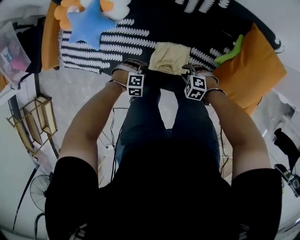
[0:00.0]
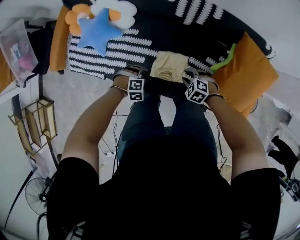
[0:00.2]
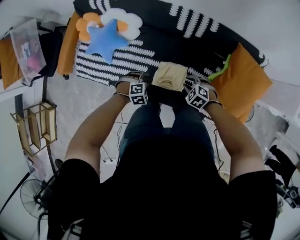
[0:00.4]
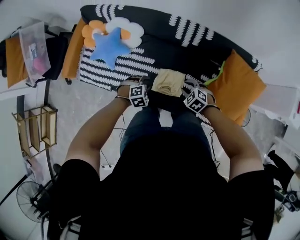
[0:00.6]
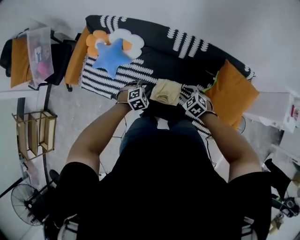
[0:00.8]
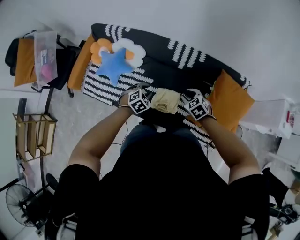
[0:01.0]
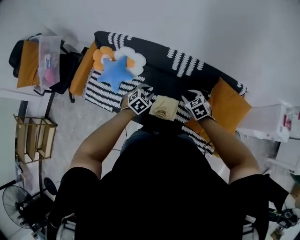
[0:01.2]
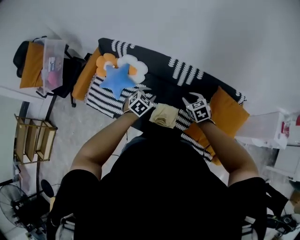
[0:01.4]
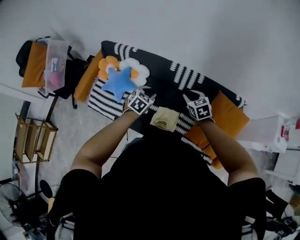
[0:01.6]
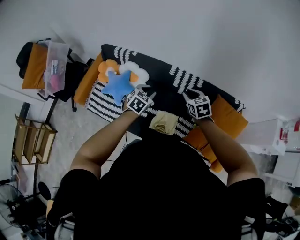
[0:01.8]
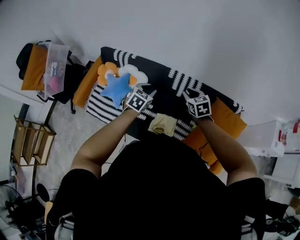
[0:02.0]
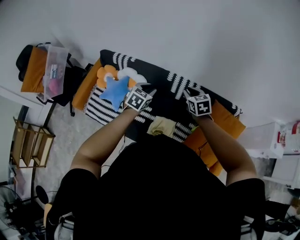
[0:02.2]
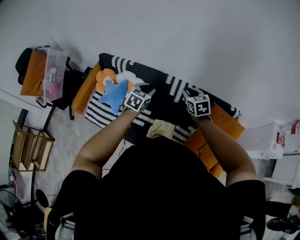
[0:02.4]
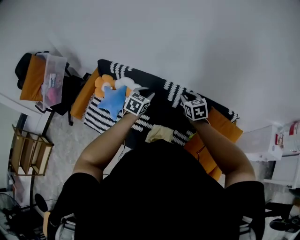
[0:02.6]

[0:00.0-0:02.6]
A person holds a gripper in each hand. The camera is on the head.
0:00.0 to 0:01.2: Both grippers travel together upward, some 35 cm. The left gripper rotates around the line of its fingers by approximately 50 degrees, counterclockwise from behind. Meanwhile the right gripper turns by some 40 degrees.
0:01.2 to 0:02.6: The grippers both shift upward and forward by about 20 cm. The left gripper swivels approximately 30 degrees.

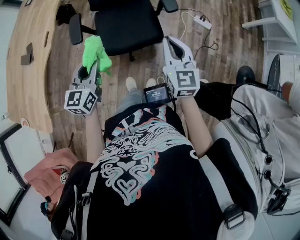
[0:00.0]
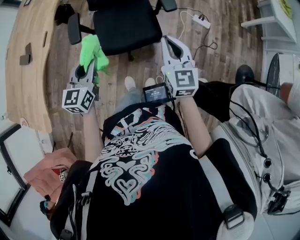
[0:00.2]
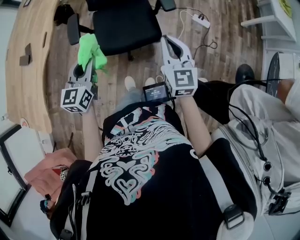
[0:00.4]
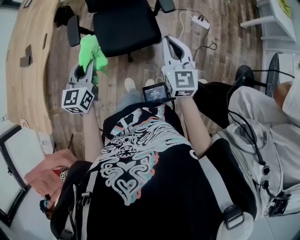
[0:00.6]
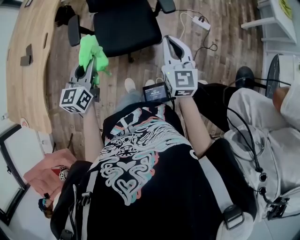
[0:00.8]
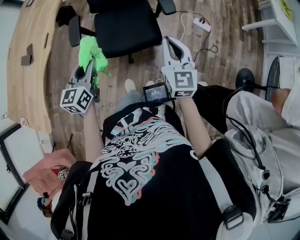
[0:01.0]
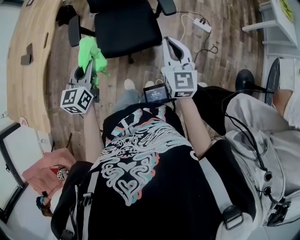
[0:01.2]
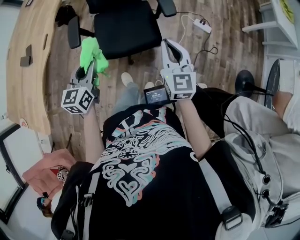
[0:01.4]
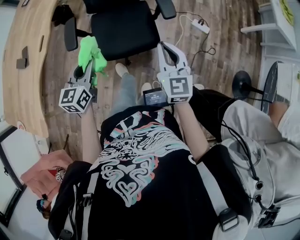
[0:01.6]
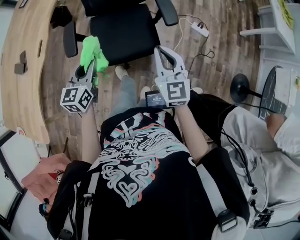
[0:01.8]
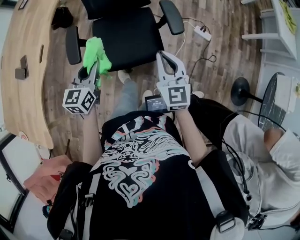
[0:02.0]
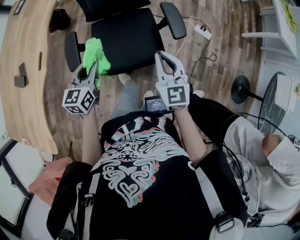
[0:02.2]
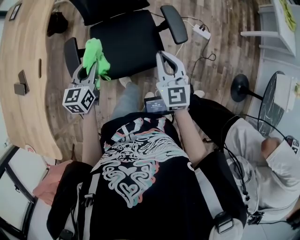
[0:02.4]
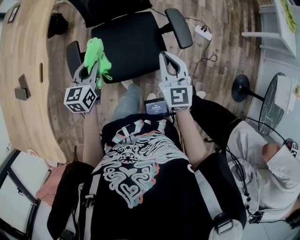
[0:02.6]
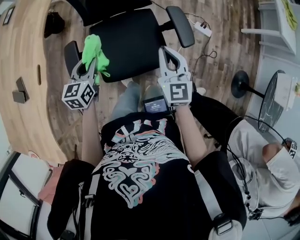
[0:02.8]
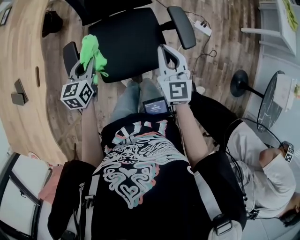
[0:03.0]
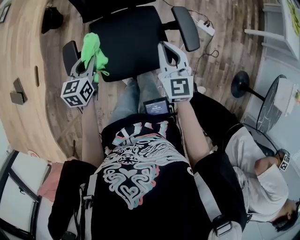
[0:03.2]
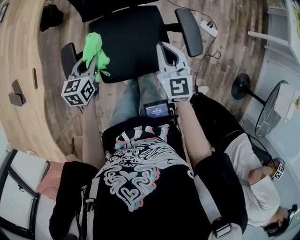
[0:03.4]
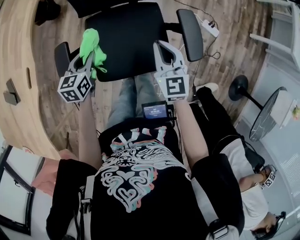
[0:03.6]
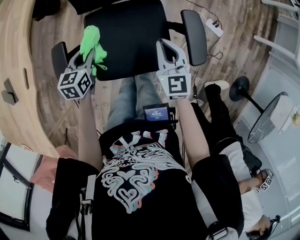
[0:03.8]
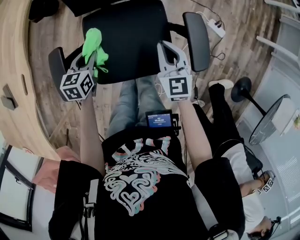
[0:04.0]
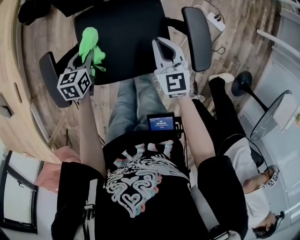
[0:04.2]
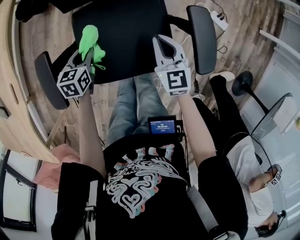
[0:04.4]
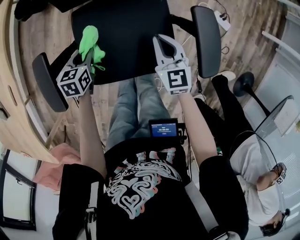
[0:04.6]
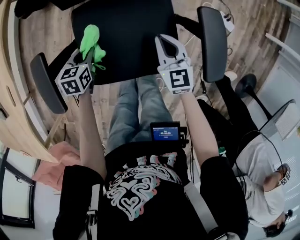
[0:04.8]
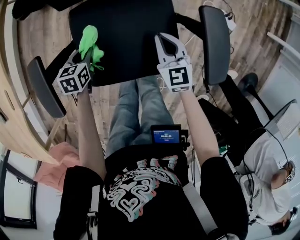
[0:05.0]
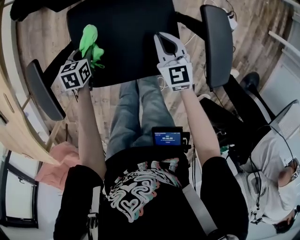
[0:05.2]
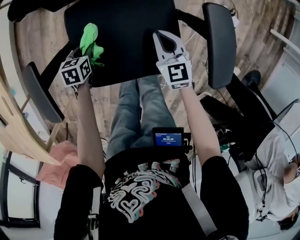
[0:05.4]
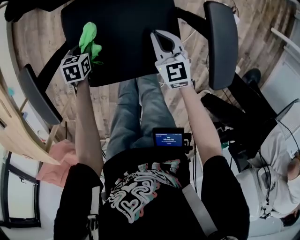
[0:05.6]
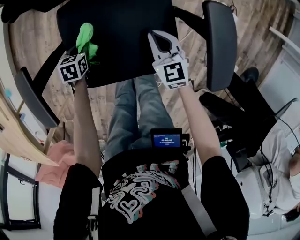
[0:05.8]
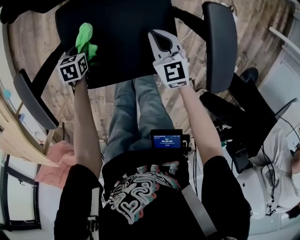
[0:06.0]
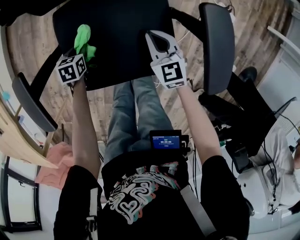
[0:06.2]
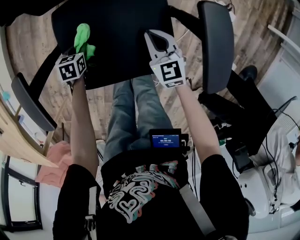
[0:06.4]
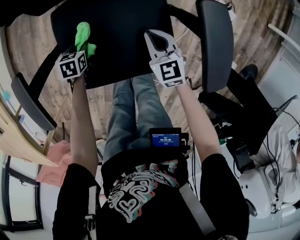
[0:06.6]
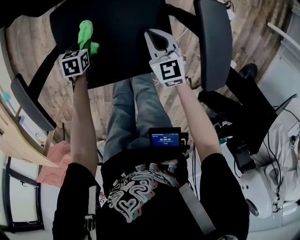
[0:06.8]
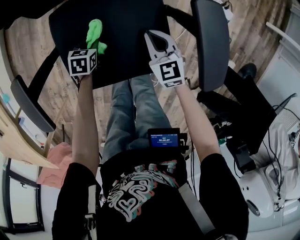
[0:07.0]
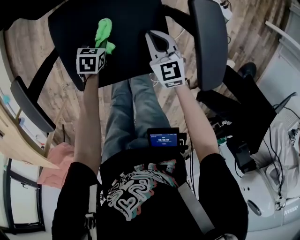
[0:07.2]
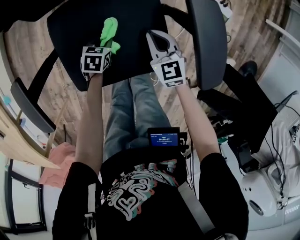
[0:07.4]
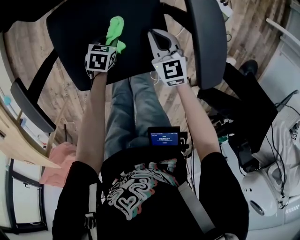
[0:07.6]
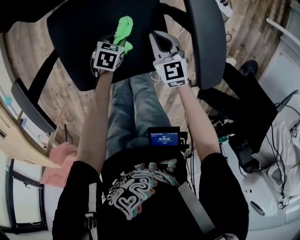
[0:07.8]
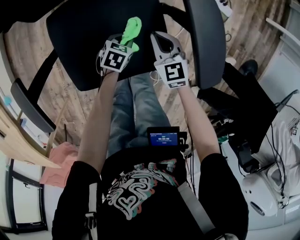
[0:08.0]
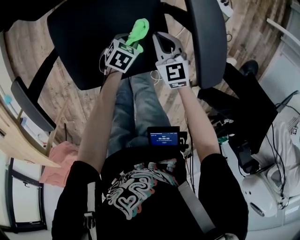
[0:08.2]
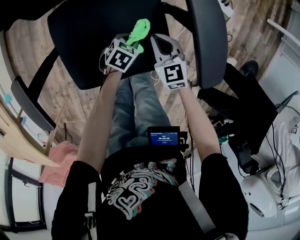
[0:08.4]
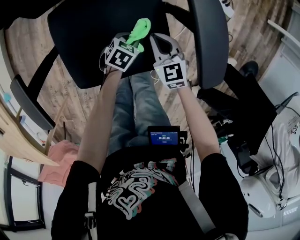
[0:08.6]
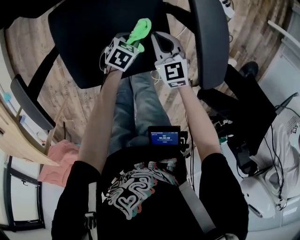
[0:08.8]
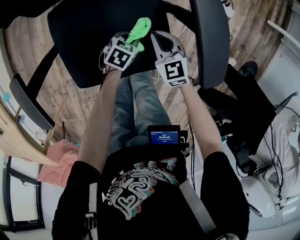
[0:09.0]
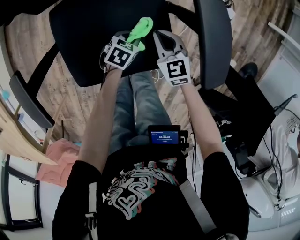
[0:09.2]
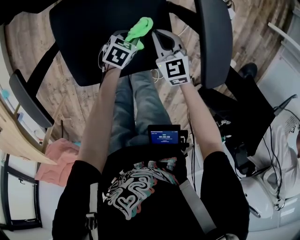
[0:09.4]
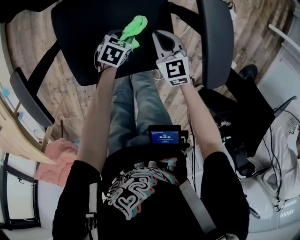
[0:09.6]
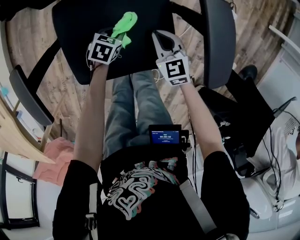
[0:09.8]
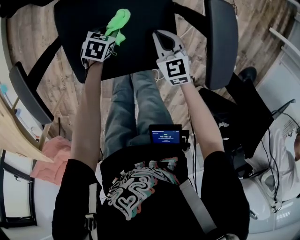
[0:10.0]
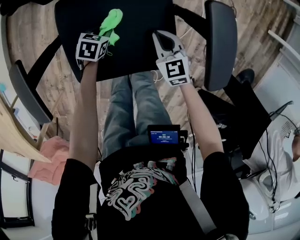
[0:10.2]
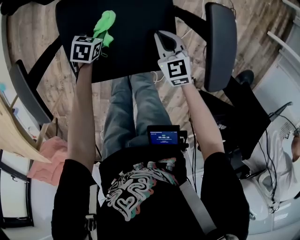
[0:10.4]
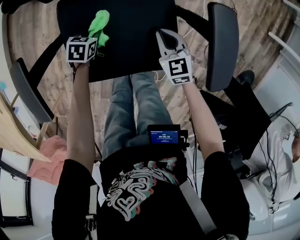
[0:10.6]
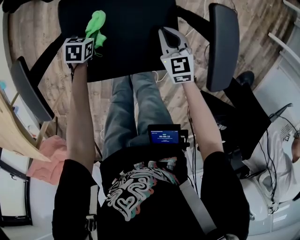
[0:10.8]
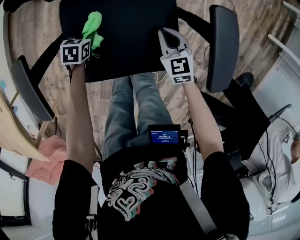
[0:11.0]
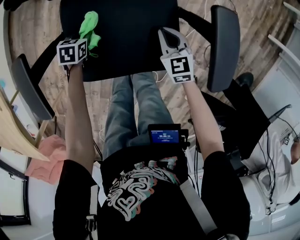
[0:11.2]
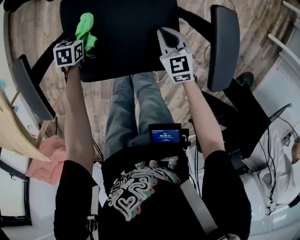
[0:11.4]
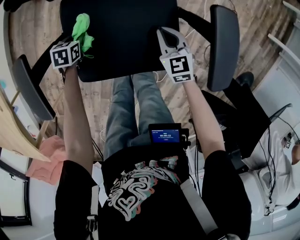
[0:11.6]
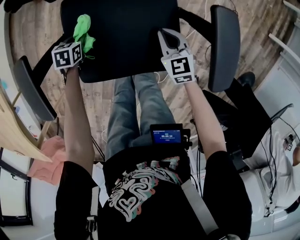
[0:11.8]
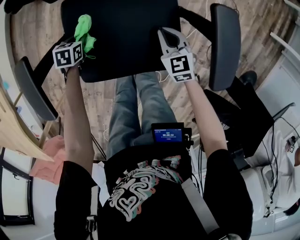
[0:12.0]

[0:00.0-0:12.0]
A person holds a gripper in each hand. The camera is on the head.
0:00.0 to 0:01.6: The left gripper shifts some 5 cm forward.
0:01.6 to 0:03.0: The right gripper travels forward and to the left by about 20 cm, while the left gripper is displaced forward, downward and to the left by some 30 cm.
0:03.0 to 0:04.4: The left gripper moves downward, roughly 20 cm, and rotates about 20 degrees. The right gripper moves downward and forward, some 25 cm.
0:04.4 to 0:06.0: Both grippers move downward, roughly 15 cm.
0:06.0 to 0:07.6: The left gripper moves to the right, about 15 cm, and rotates some 20 degrees.
0:07.6 to 0:09.0: The left gripper travels to the right by about 10 cm.
0:09.0 to 0:10.4: The left gripper travels to the left by approximately 15 cm.
0:10.4 to 0:12.0: The left gripper heads to the left, covering some 10 cm.

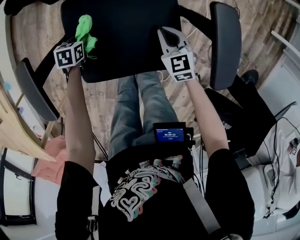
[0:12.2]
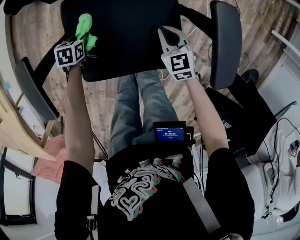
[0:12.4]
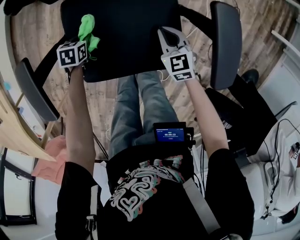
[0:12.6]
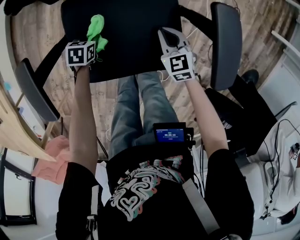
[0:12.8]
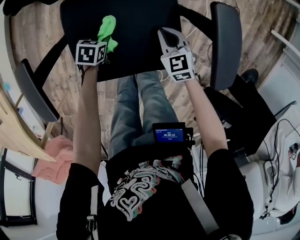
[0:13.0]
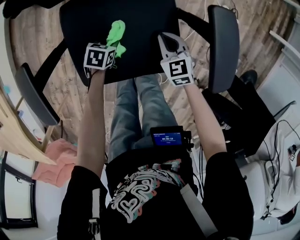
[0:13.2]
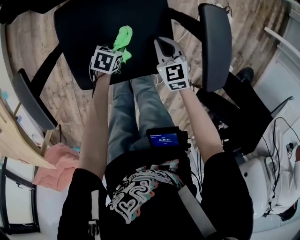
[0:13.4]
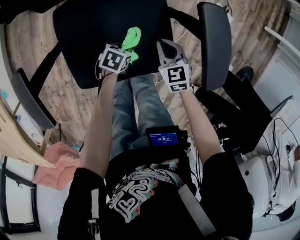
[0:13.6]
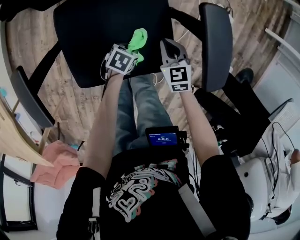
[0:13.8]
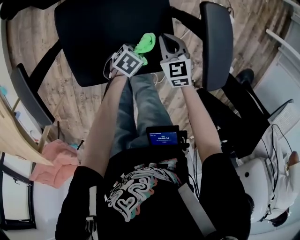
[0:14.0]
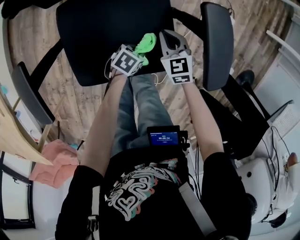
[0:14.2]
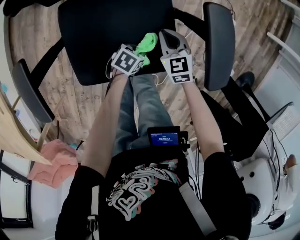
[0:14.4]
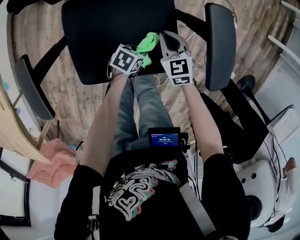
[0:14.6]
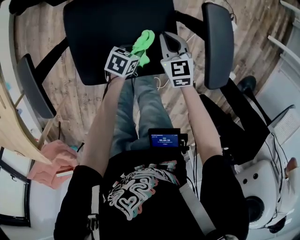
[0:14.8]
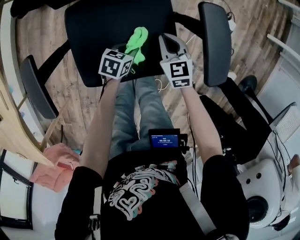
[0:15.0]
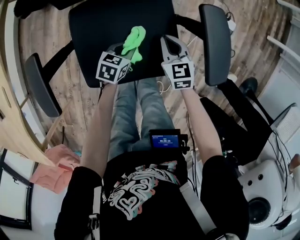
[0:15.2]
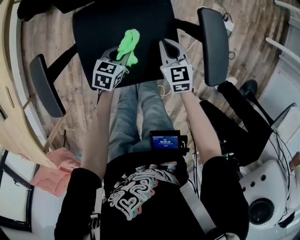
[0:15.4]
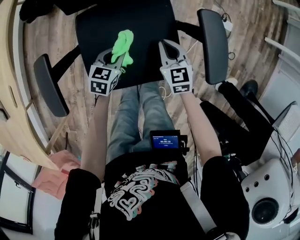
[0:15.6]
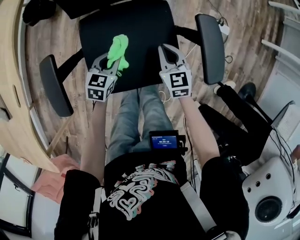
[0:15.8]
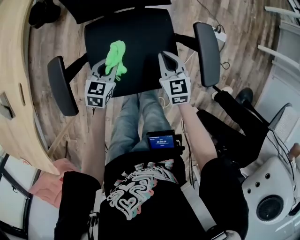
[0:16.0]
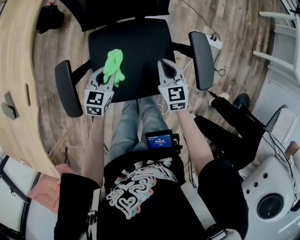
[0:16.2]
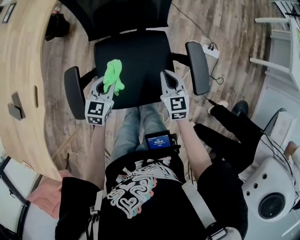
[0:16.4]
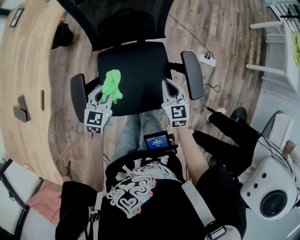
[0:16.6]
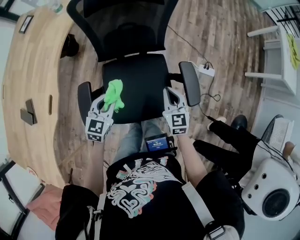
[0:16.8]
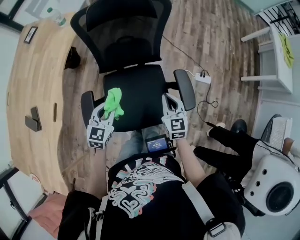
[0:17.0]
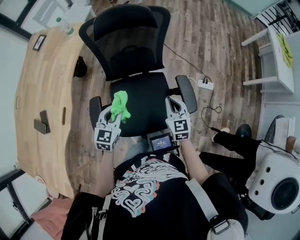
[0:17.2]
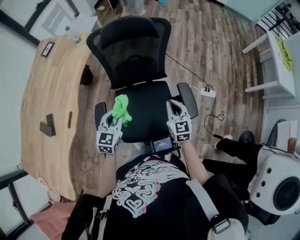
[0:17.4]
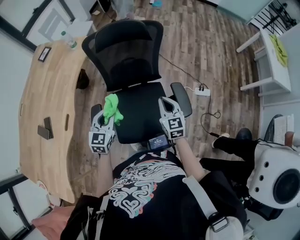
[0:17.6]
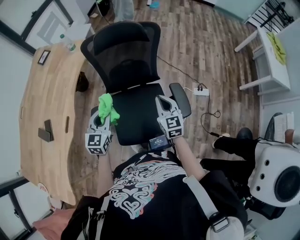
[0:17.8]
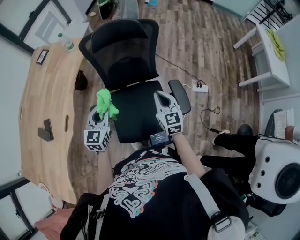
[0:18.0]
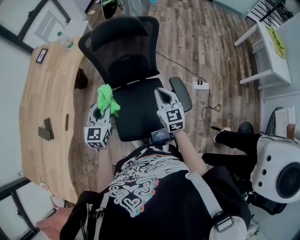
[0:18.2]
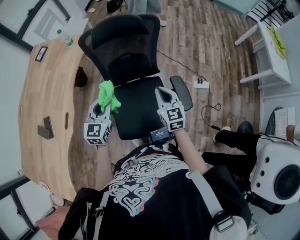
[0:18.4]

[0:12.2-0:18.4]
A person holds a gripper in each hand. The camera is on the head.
0:12.2 to 0:13.8: The right gripper moves about 5 cm. The left gripper moves some 25 cm, and swivels approximately 30 degrees.
0:13.8 to 0:15.4: The left gripper shifts by some 10 cm, and swivels some 20 degrees. Meanwhile the right gripper changes place by roughly 5 cm.
0:15.4 to 0:16.8: The right gripper moves upward, approximately 25 cm. The left gripper goes roughly 30 cm upward and to the left, and rotates approximately 30 degrees.
0:16.8 to 0:18.4: Both grippers travel together upward, approximately 15 cm.

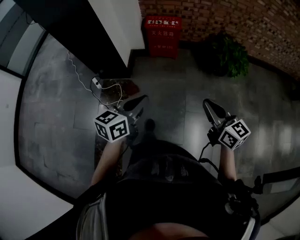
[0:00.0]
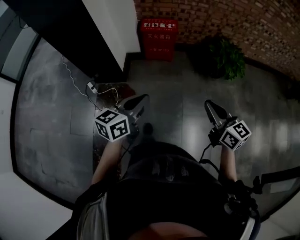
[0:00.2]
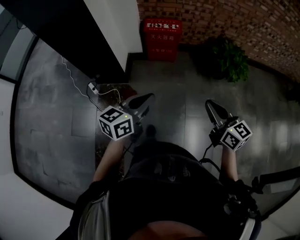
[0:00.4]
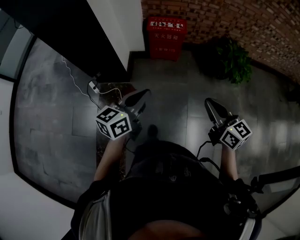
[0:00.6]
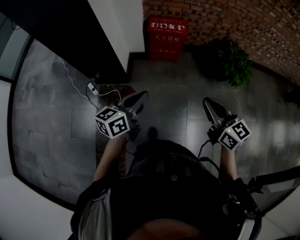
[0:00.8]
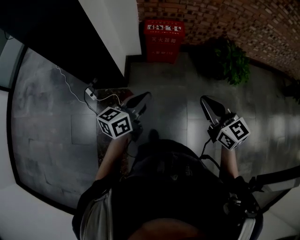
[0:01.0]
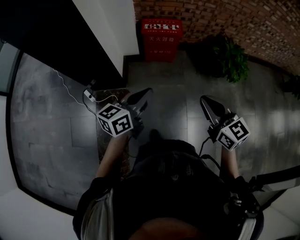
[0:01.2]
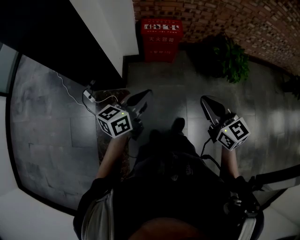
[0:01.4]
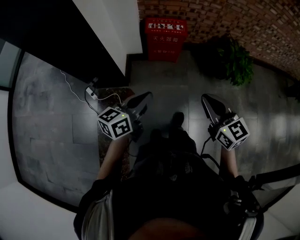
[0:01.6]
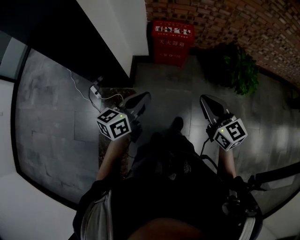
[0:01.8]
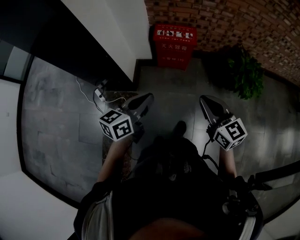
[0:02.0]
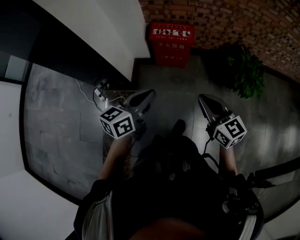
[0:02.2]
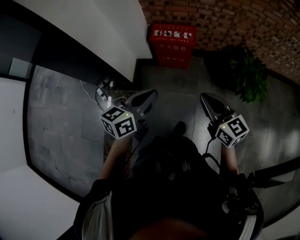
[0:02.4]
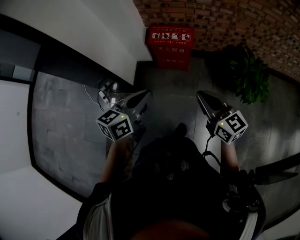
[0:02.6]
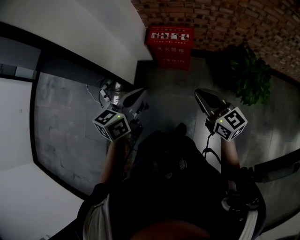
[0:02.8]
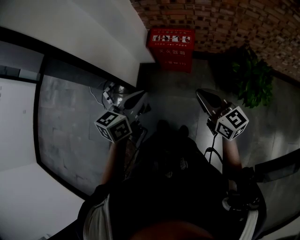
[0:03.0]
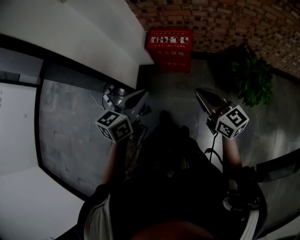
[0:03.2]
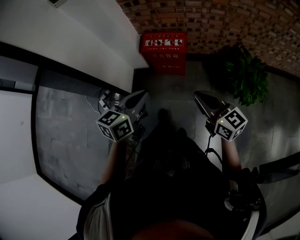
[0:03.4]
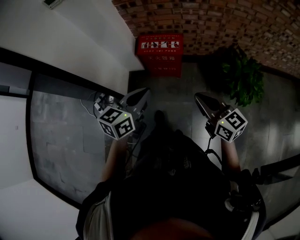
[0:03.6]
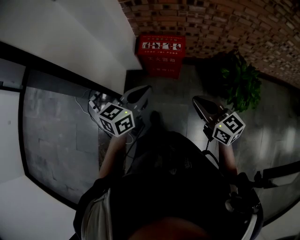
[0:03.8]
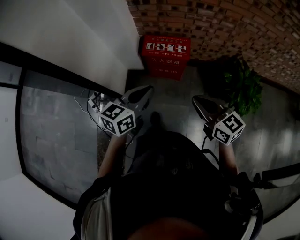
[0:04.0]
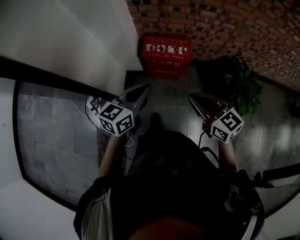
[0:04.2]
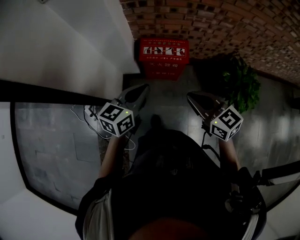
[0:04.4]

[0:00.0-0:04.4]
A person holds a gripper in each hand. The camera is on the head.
0:00.0 to 0:01.4: Both grippers move forward and to the left, approximately 25 cm.
0:01.4 to 0:03.0: The two grippers go about 25 cm forward and to the right. The left gripper rotates roughly 20 degrees. Meanwhile the right gripper rotates about 20 degrees.
0:03.0 to 0:04.4: The left gripper heads forward, covering about 20 cm. Meanwhile the right gripper travels forward and to the left by approximately 20 cm.
